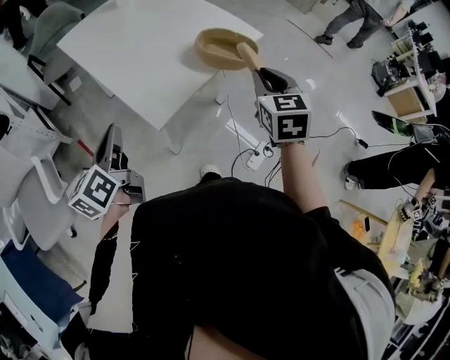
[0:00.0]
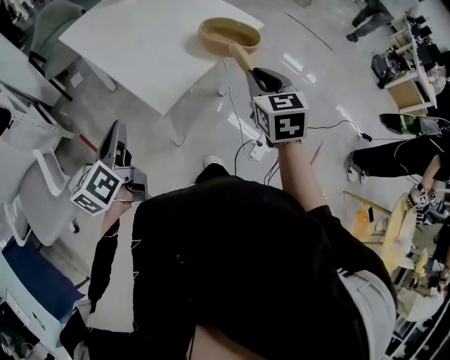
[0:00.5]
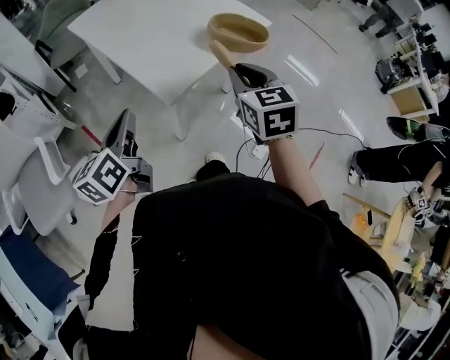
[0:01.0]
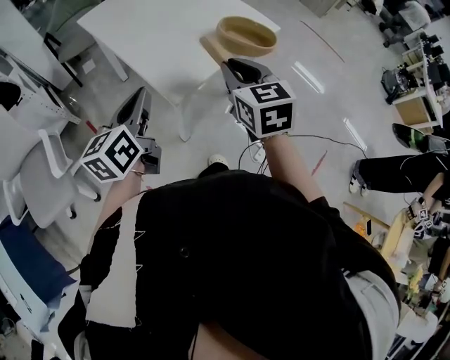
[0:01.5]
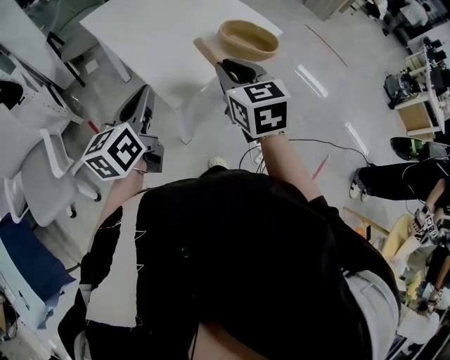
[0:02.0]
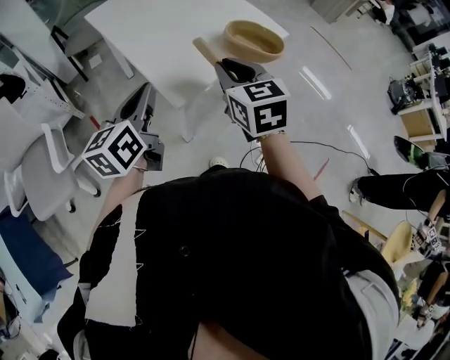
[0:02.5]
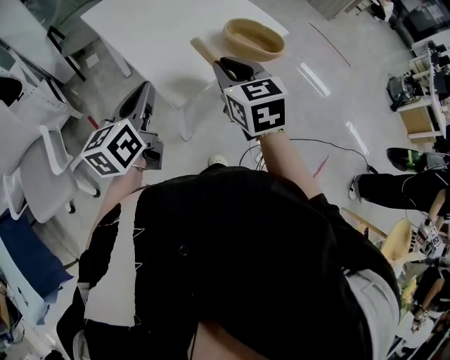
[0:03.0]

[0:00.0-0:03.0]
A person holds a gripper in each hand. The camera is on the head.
0:00.0 to 0:01.5: The right gripper heads to the left, covering approximately 15 cm.
0:01.5 to 0:03.0: The grippers make only small movements.

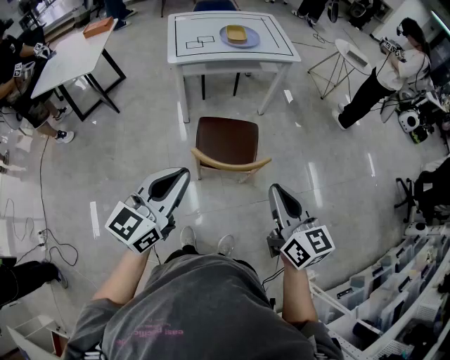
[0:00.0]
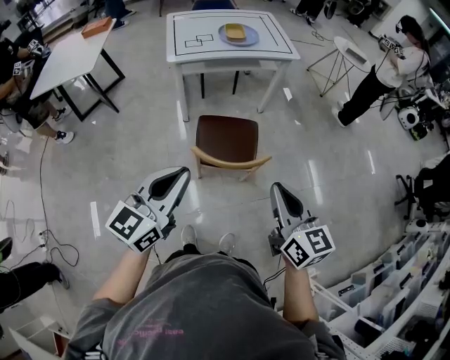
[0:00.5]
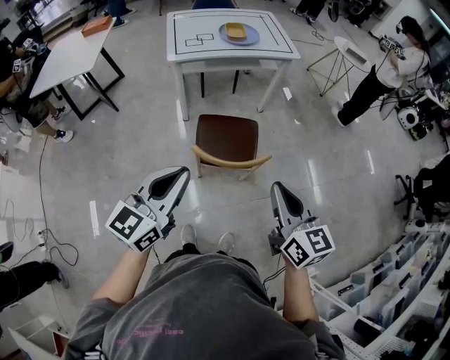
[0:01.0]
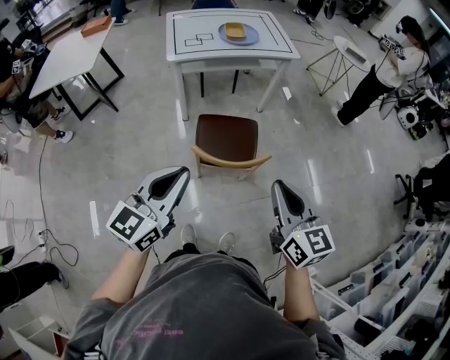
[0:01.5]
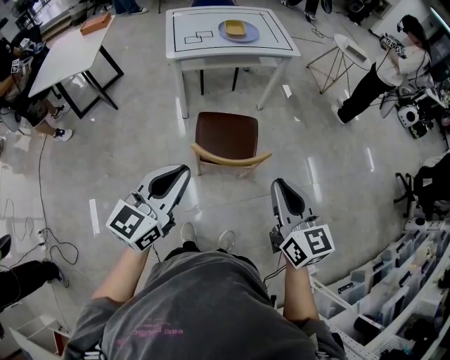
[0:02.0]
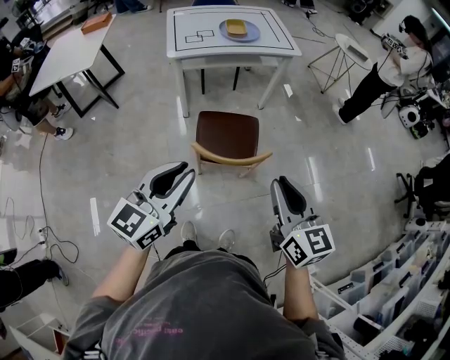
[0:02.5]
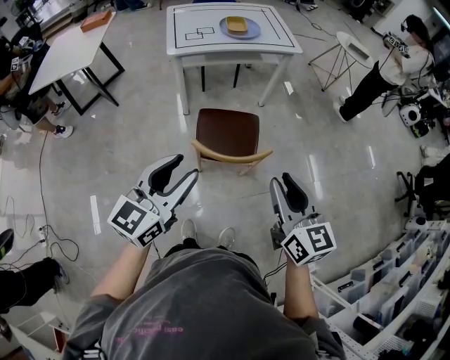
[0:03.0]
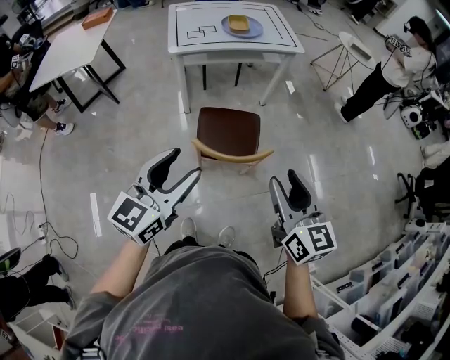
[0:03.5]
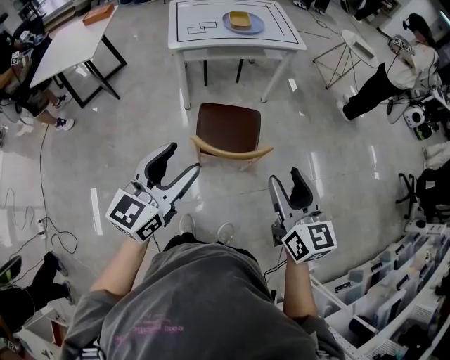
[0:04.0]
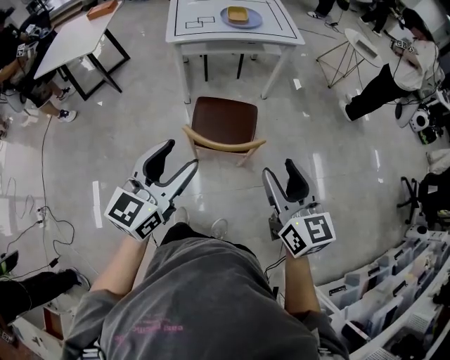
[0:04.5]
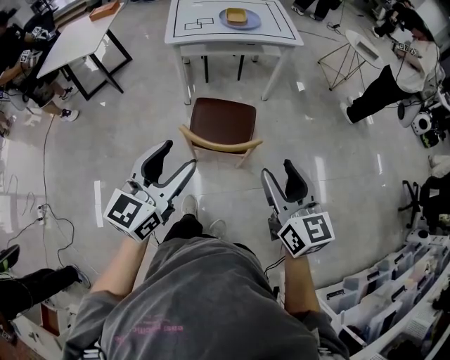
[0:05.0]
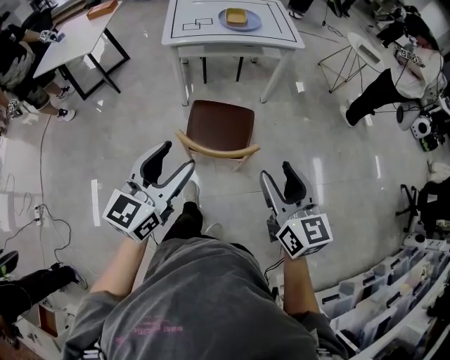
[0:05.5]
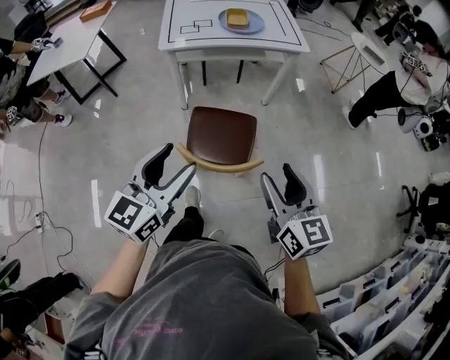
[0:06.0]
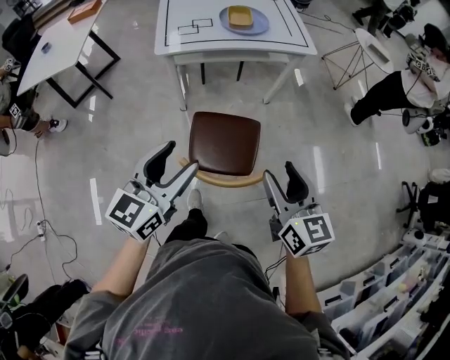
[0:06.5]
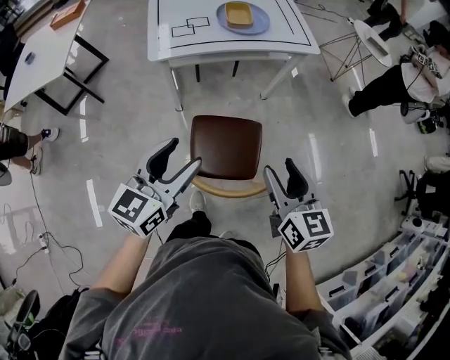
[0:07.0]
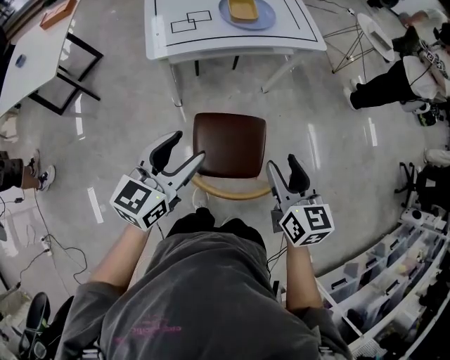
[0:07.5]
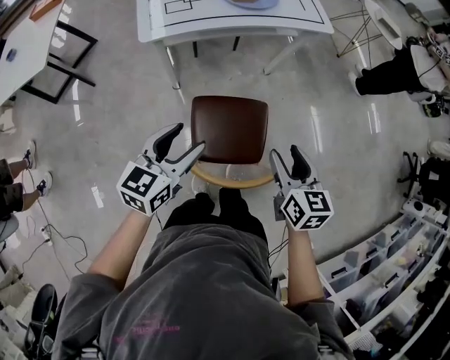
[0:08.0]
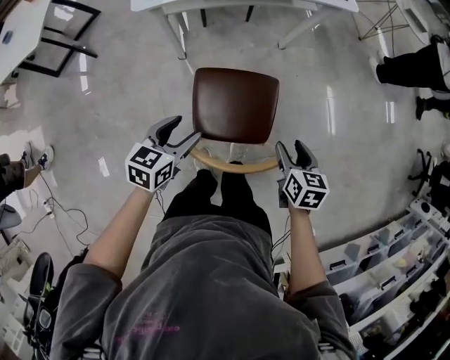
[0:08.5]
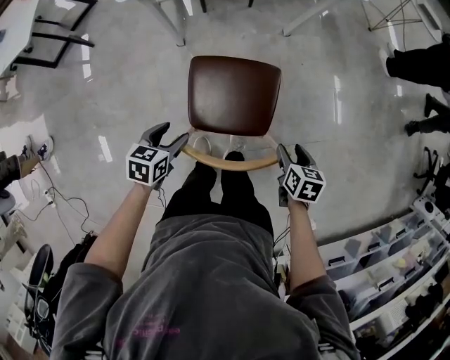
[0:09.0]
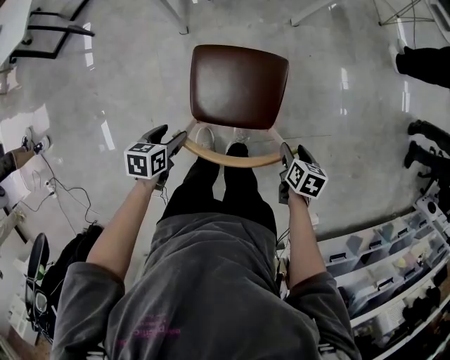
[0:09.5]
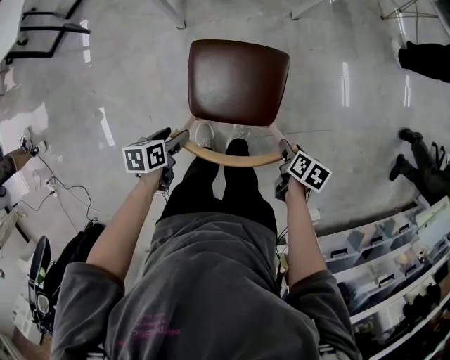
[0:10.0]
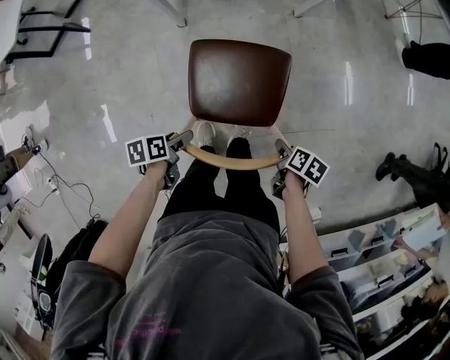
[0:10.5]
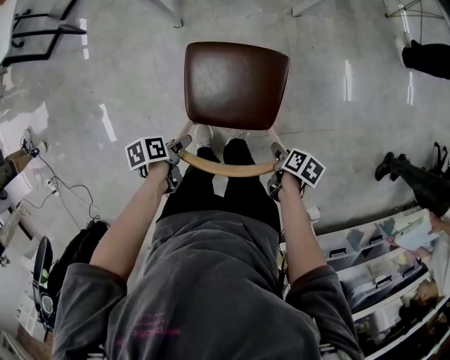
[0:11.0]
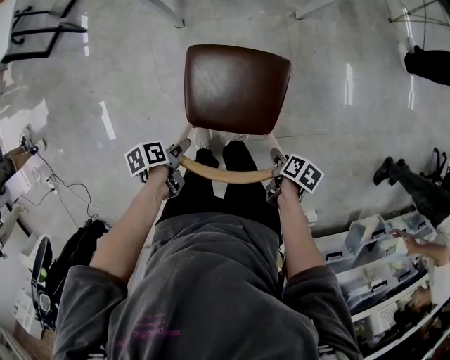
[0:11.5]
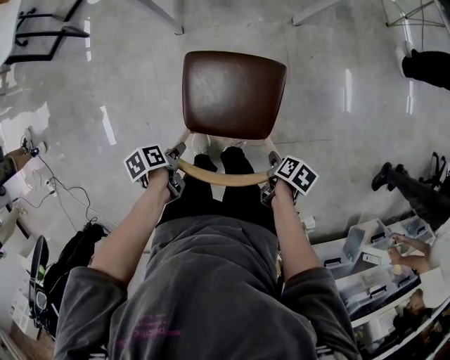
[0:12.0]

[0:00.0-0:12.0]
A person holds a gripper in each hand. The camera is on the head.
0:00.0 to 0:02.0: The grippers move only a little.
0:02.0 to 0:04.0: The right gripper opens its fingers. Meanwhile the left gripper opens up.
0:04.0 to 0:06.0: The left gripper shifts roughly 10 cm forward and to the right. Meanwhile the right gripper heads forward, covering roughly 10 cm.
0:06.0 to 0:08.0: Both grippers travel together forward, downward and to the left, about 25 cm. The left gripper changes its angle by roughly 20 degrees. The right gripper swivels approximately 20 degrees.
0:08.0 to 0:10.0: The right gripper heads downward and to the right, covering about 35 cm, and angles its fingers downward, by some 40 degrees; the left gripper is displaced downward by roughly 30 cm, and angles its fingers downward, by about 40 degrees.
0:10.0 to 0:12.0: The left gripper changes its angle by approximately 40 degrees.

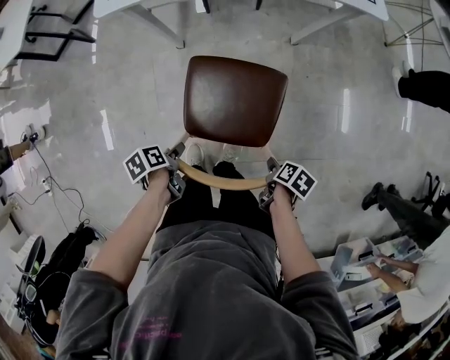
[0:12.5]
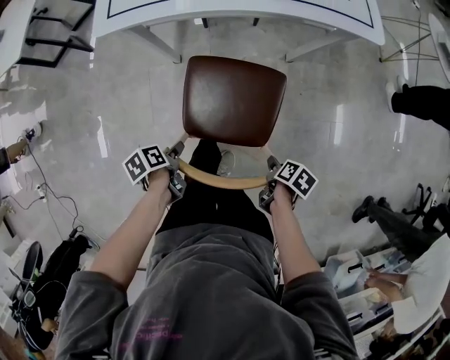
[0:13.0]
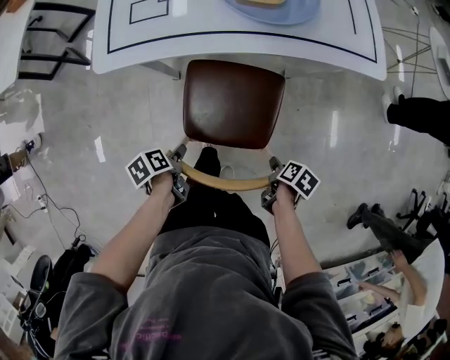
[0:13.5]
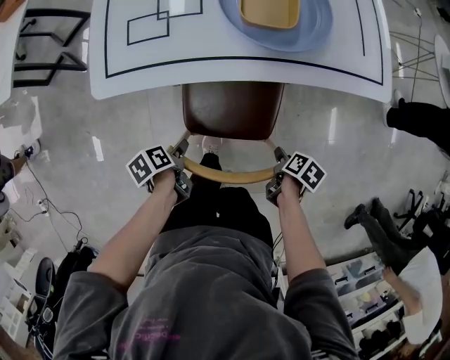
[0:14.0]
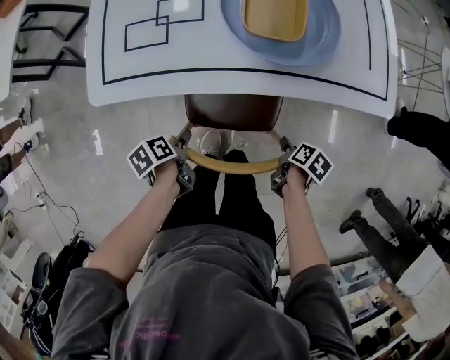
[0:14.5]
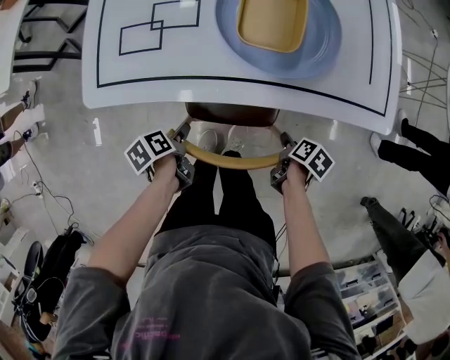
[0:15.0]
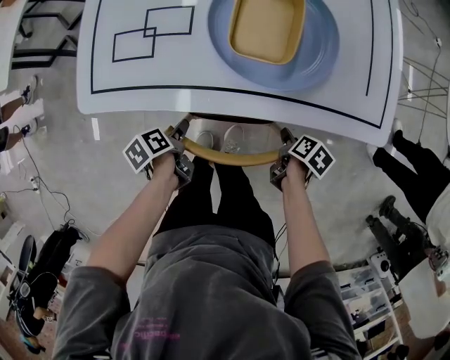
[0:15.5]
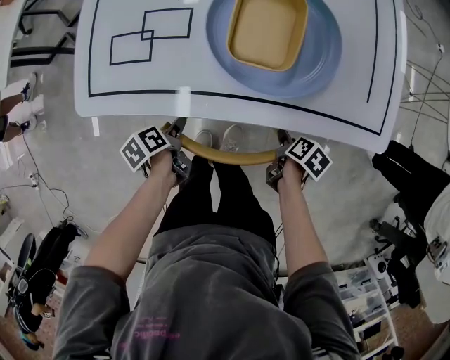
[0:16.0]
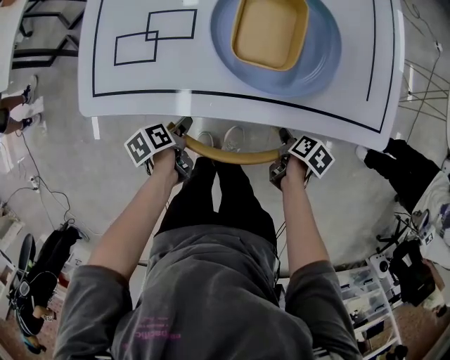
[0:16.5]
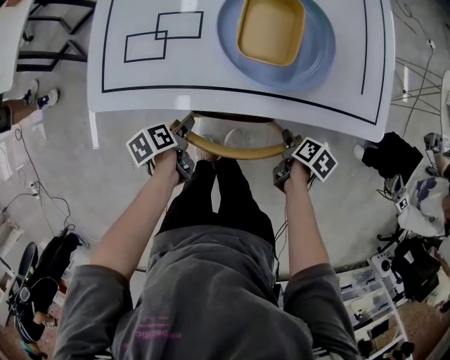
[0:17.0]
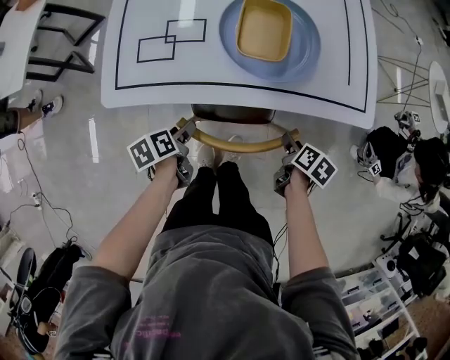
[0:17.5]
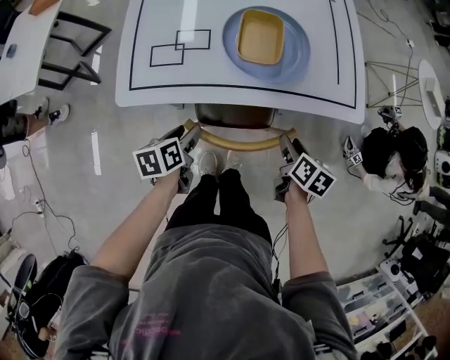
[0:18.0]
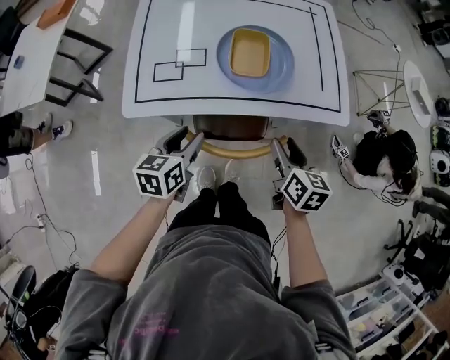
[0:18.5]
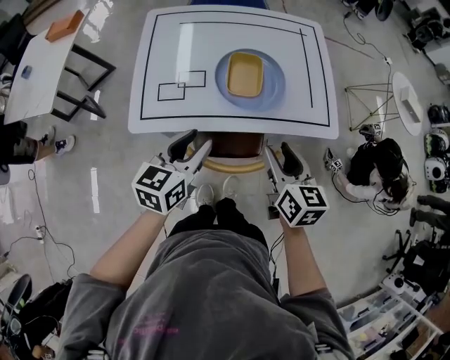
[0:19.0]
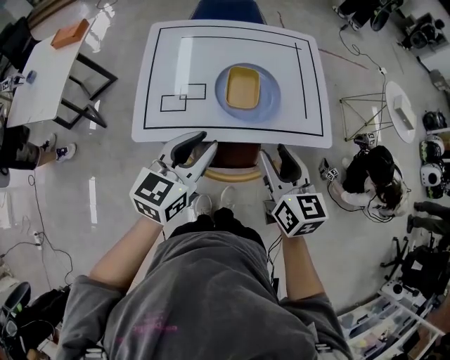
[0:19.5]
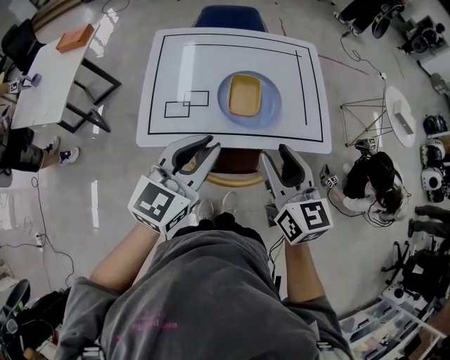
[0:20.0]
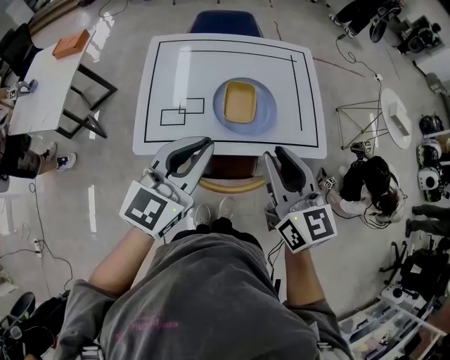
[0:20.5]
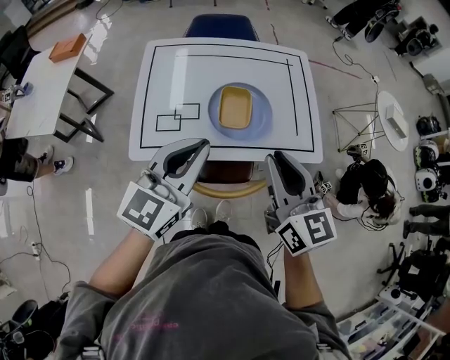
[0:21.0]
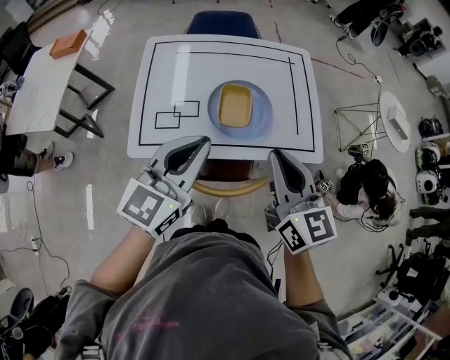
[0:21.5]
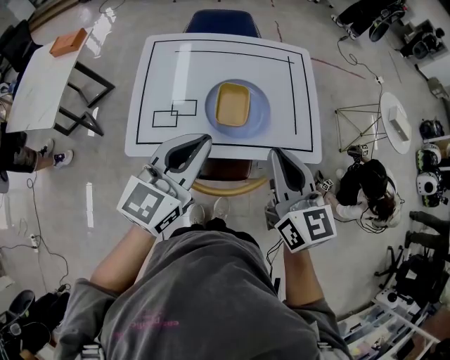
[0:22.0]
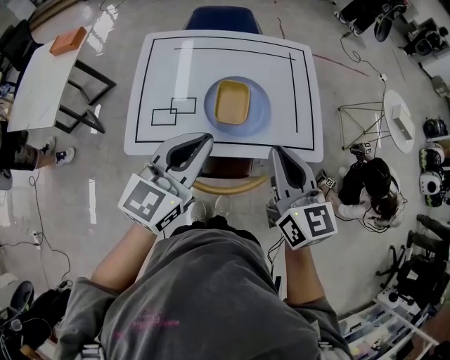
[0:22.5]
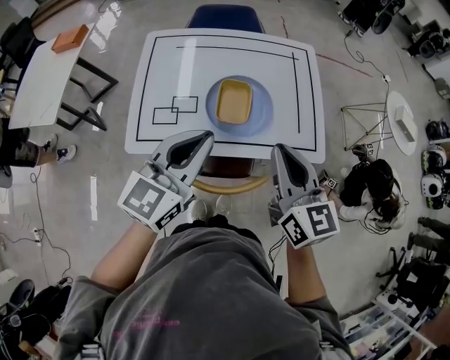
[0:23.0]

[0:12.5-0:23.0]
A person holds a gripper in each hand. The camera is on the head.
0:12.5 to 0:14.5: The right gripper moves about 35 cm, while the left gripper moves roughly 30 cm.
0:14.5 to 0:16.5: The left gripper shifts by some 10 cm. The right gripper changes place by roughly 10 cm.
0:16.5 to 0:19.0: Both grippers travel together upward, roughly 35 cm. The right gripper points its fingers roughly 50 degrees further upward. Meanwhile the left gripper rotates around the line of its fingers by approximately 60 degrees, clockwise from behind, and closes its fingers.
0:19.0 to 0:21.0: The grippers both shift upward by approximately 15 cm. The left gripper turns by roughly 30 degrees, and closes up. The right gripper swivels about 20 degrees, and closes up.
0:21.0 to 0:23.0: The grippers make only small movements.

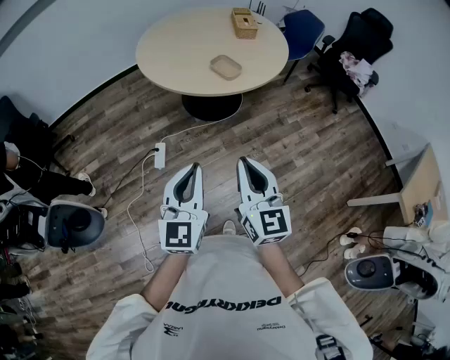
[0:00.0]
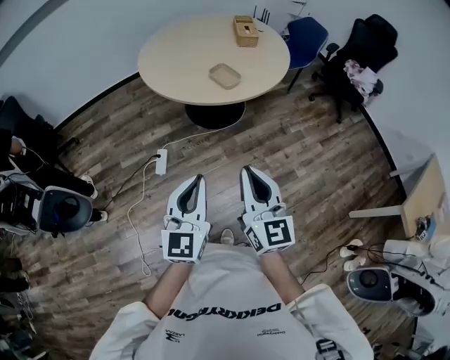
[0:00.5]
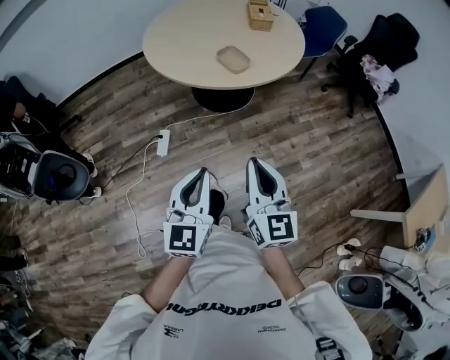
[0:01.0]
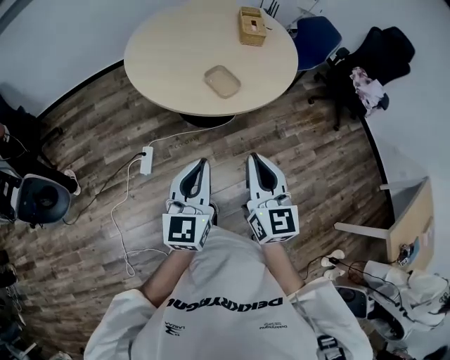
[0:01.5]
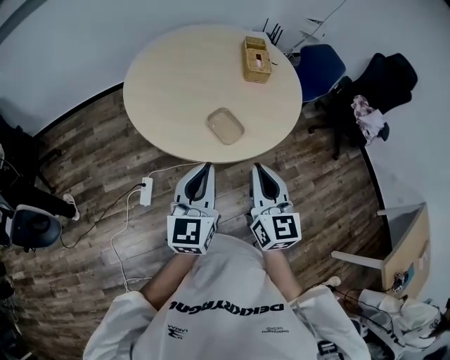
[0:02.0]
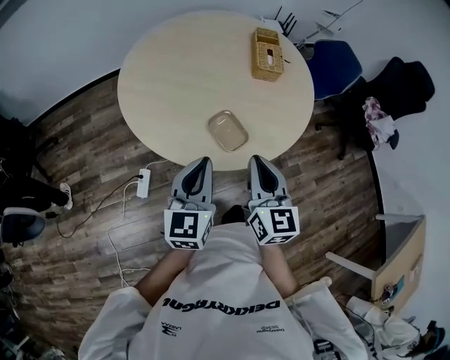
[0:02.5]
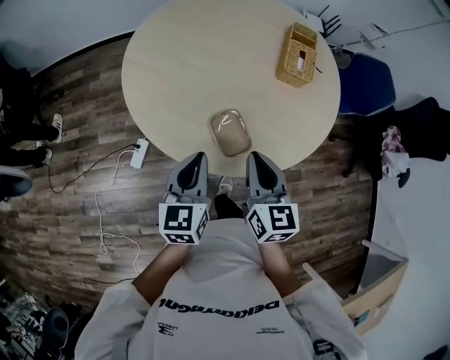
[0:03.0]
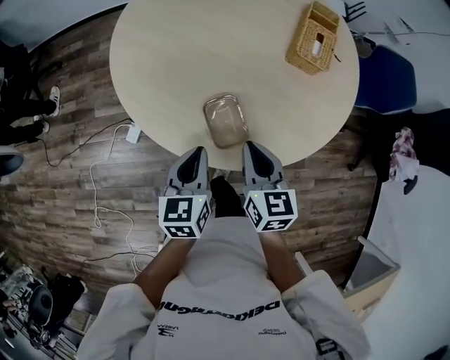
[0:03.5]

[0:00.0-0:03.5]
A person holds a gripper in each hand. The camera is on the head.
0:00.0 to 0:02.0: The two grippers go roughly 35 cm forward.
0:02.0 to 0:03.5: The two grippers go about 30 cm forward and downward. The right gripper rotates approximately 30 degrees, while the left gripper turns by some 40 degrees.
